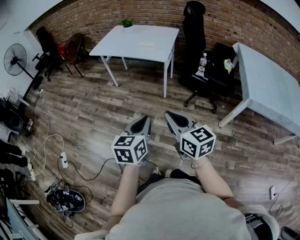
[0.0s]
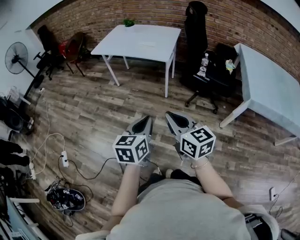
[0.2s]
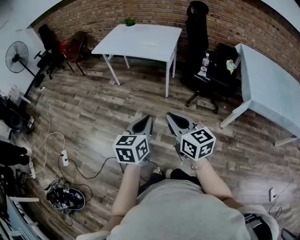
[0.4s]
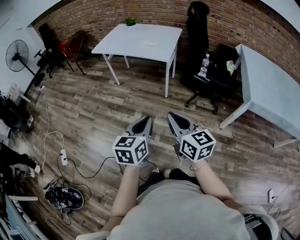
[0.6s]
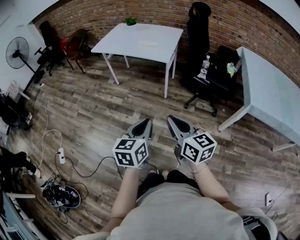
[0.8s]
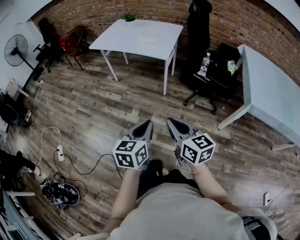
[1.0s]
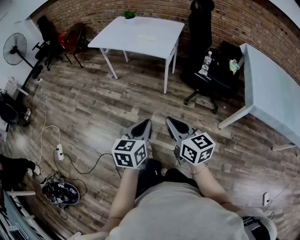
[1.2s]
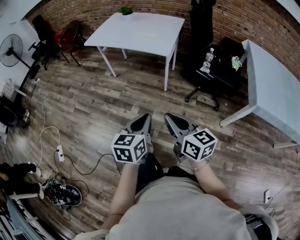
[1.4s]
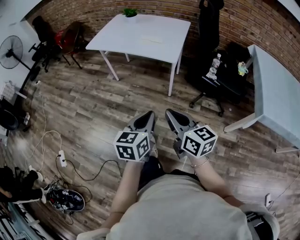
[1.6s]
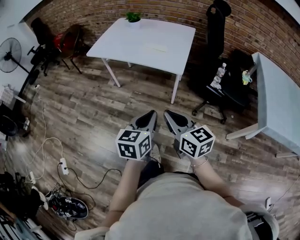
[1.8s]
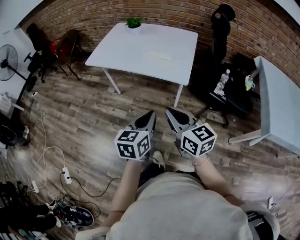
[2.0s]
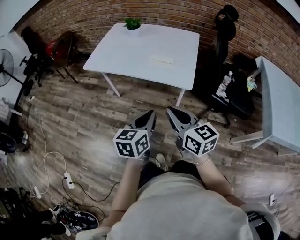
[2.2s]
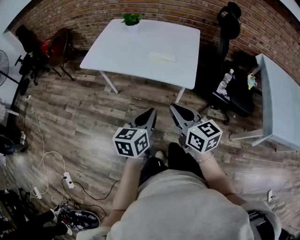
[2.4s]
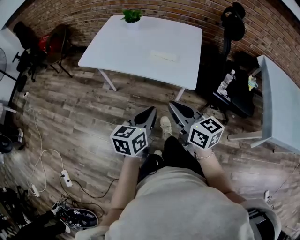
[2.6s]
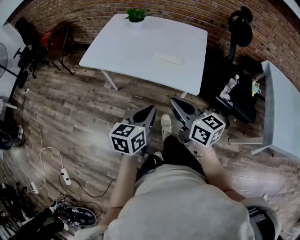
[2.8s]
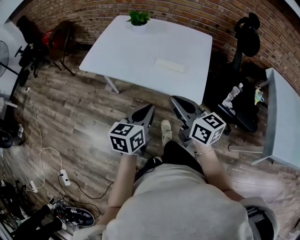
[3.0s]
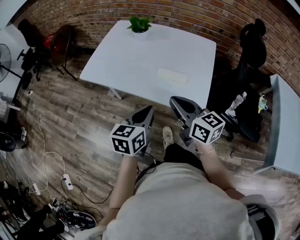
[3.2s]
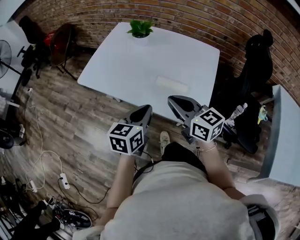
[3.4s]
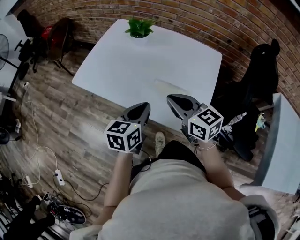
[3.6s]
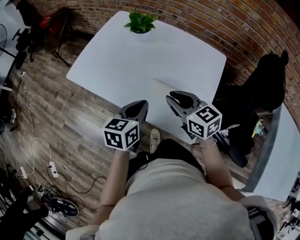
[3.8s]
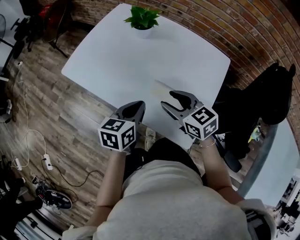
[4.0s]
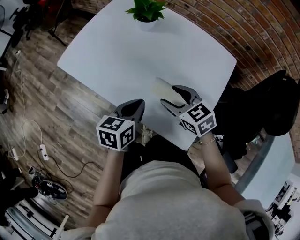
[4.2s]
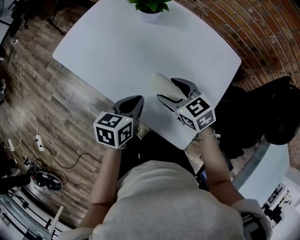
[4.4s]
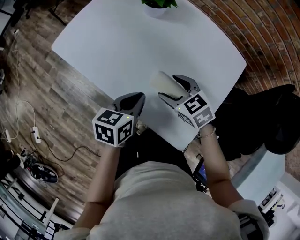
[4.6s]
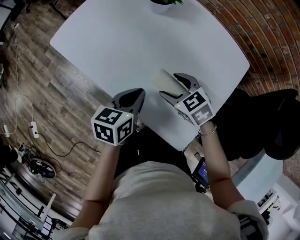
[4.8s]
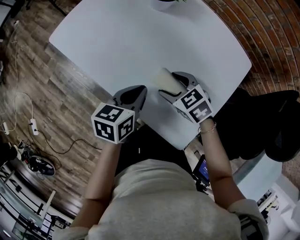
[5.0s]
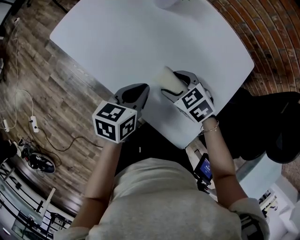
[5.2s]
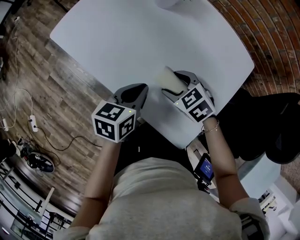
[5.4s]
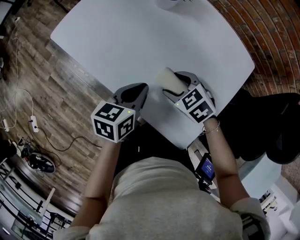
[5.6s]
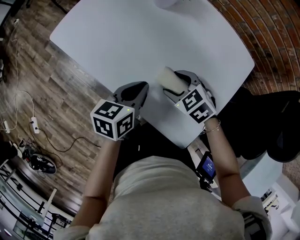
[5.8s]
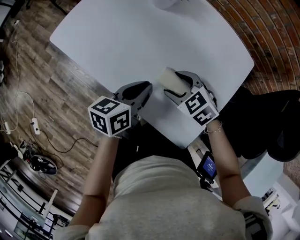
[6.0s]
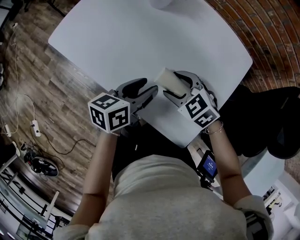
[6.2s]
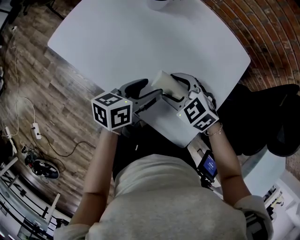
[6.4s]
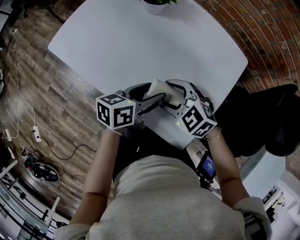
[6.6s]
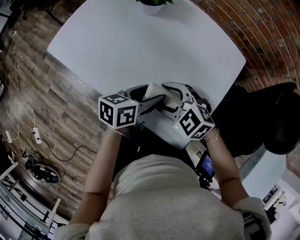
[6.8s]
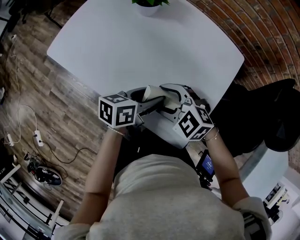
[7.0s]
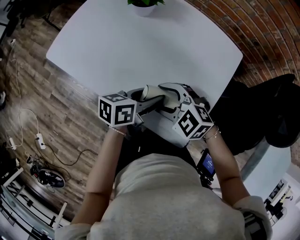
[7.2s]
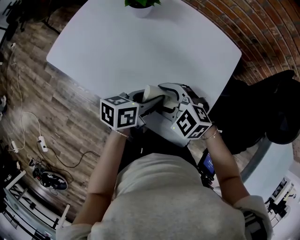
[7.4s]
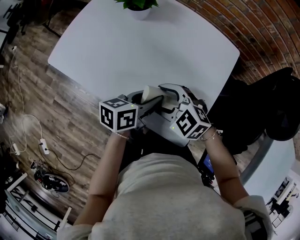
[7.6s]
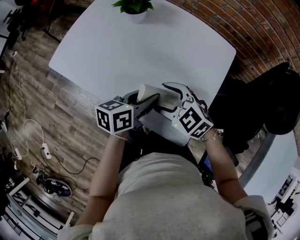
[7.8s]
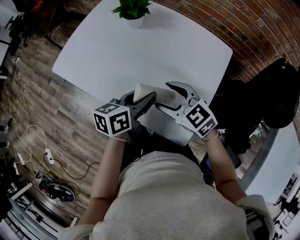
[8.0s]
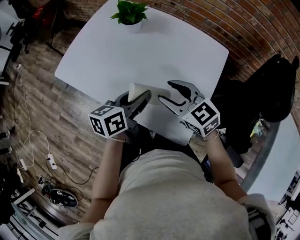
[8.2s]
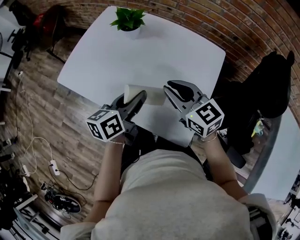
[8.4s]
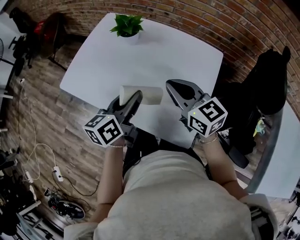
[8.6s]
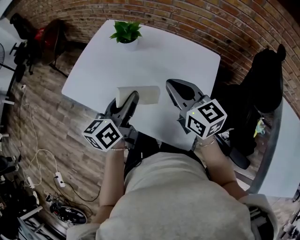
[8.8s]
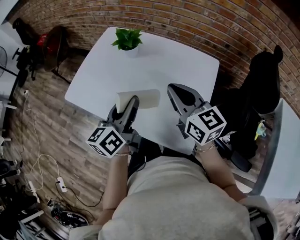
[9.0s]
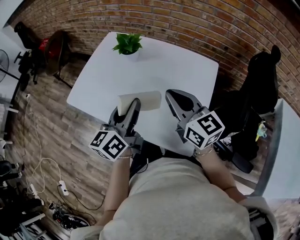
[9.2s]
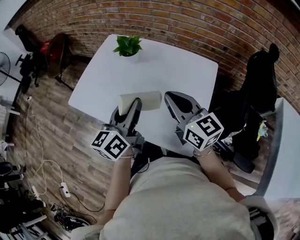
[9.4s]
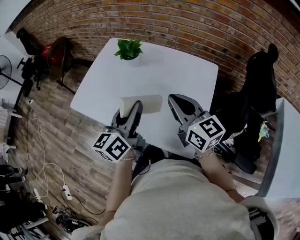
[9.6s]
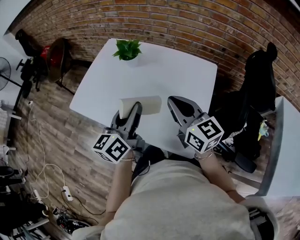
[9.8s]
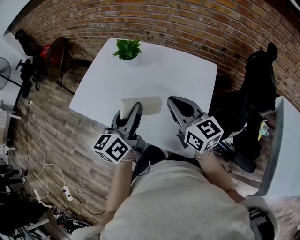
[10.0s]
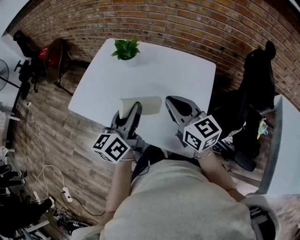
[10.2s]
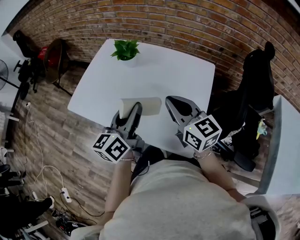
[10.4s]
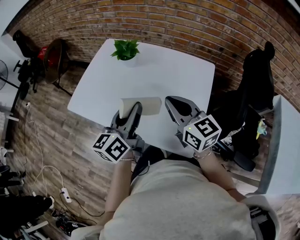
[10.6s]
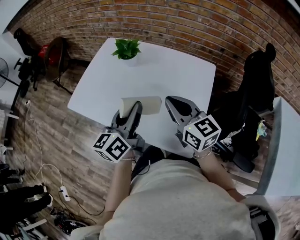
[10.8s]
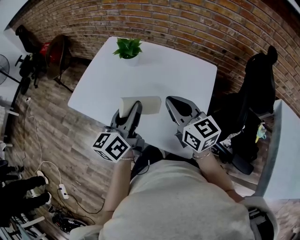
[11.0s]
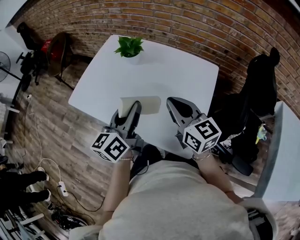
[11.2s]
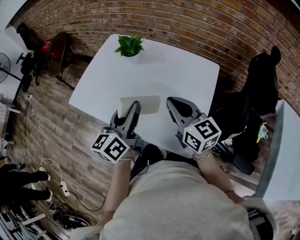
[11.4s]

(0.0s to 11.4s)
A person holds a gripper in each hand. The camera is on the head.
0.0s - 1.4s: The grippers both shift forward and downward by about 10 cm.
1.4s - 2.8s: The two grippers travel together, forward, approximately 40 cm.
2.8s - 4.2s: The two grippers go about 35 cm forward. The right gripper rotates some 50 degrees, and opens.
4.2s - 5.6s: The left gripper changes place by some 5 cm. The right gripper moves downward, some 10 cm, and turns by roughly 30 degrees.
5.6s - 7.2s: The right gripper travels upward by about 5 cm, and changes its angle by some 20 degrees, while the left gripper changes place by approximately 10 cm, swivels roughly 30 degrees, and opens its fingers.
7.2s - 8.6s: Both grippers move upward, about 15 cm. The right gripper tips its fingers upward by approximately 30 degrees, and closes up. Meanwhile the left gripper changes its angle by approximately 30 degrees.
8.6s - 10.0s: The left gripper shifts about 5 cm upward.
10.0s - 11.4s: Neither gripper changes place.

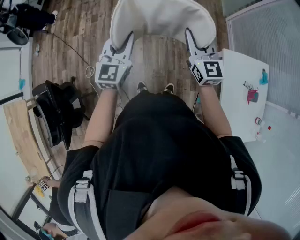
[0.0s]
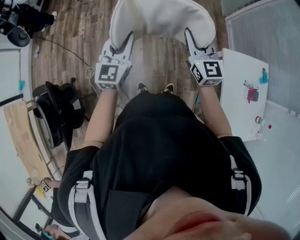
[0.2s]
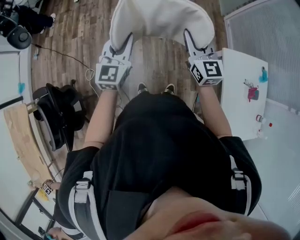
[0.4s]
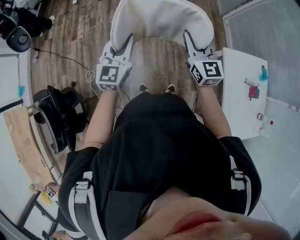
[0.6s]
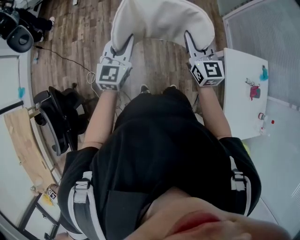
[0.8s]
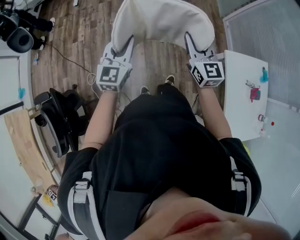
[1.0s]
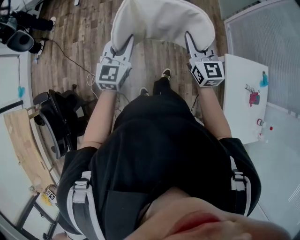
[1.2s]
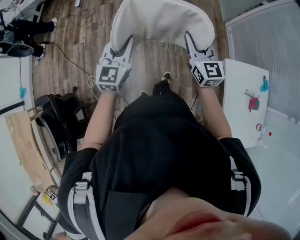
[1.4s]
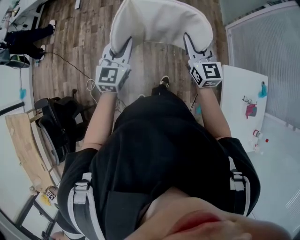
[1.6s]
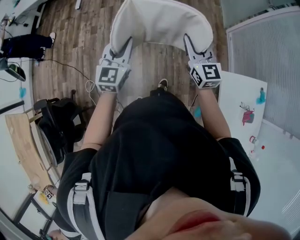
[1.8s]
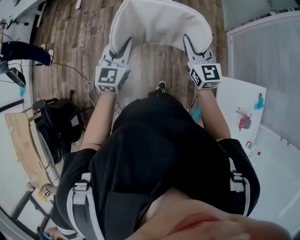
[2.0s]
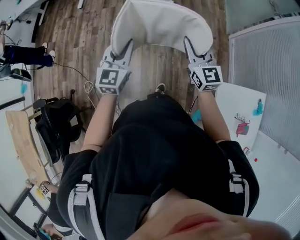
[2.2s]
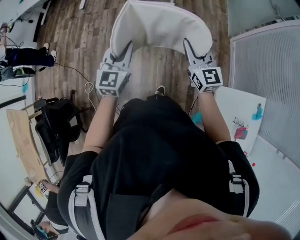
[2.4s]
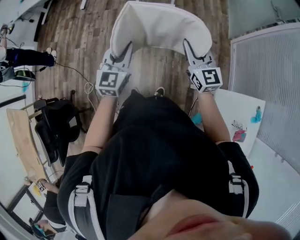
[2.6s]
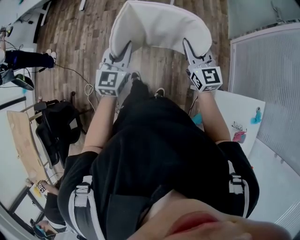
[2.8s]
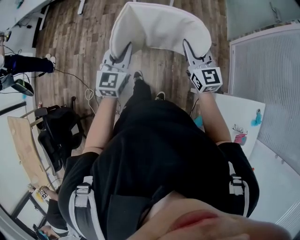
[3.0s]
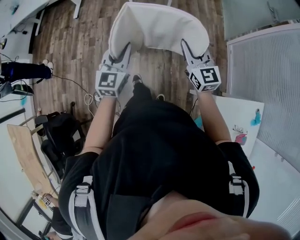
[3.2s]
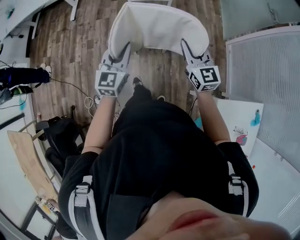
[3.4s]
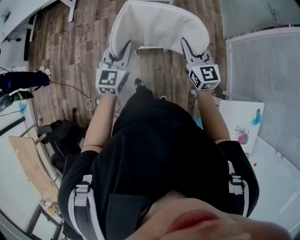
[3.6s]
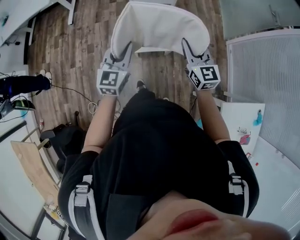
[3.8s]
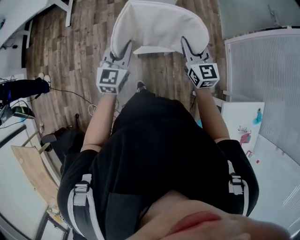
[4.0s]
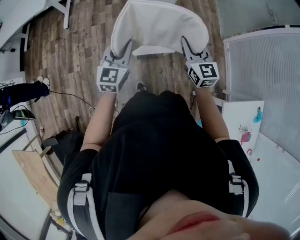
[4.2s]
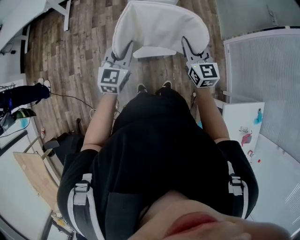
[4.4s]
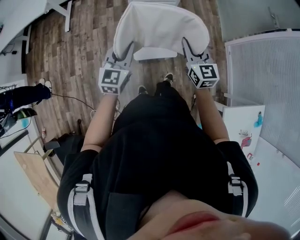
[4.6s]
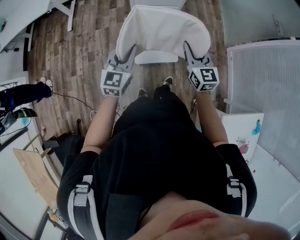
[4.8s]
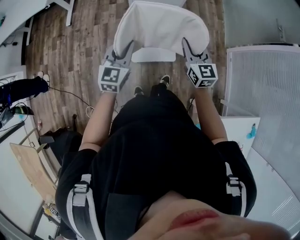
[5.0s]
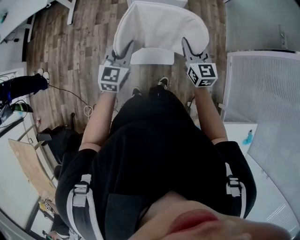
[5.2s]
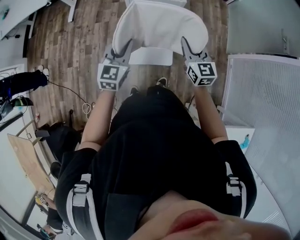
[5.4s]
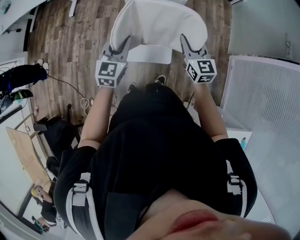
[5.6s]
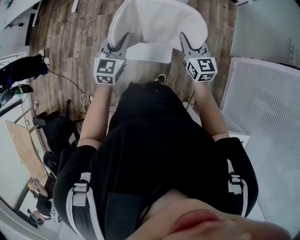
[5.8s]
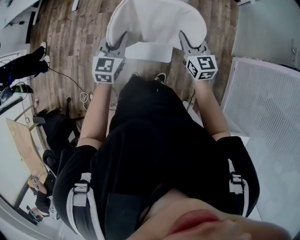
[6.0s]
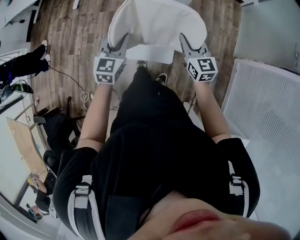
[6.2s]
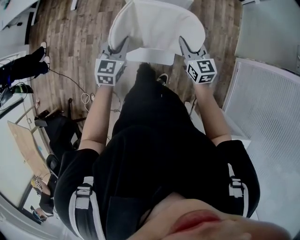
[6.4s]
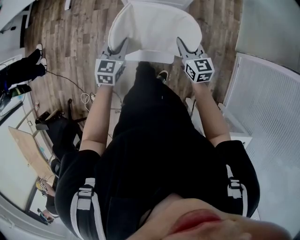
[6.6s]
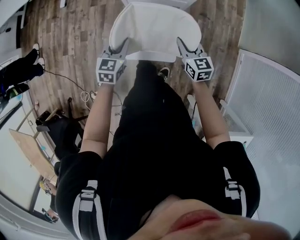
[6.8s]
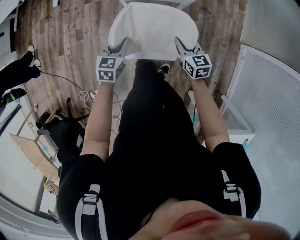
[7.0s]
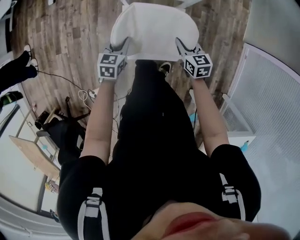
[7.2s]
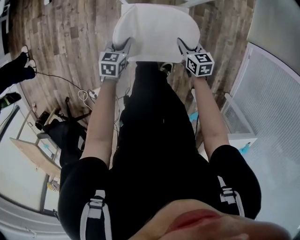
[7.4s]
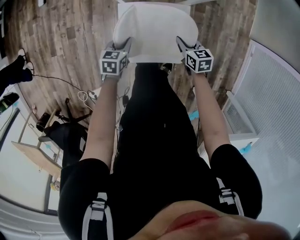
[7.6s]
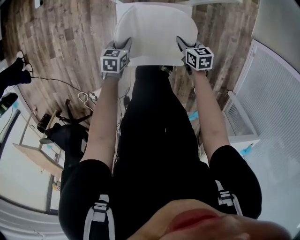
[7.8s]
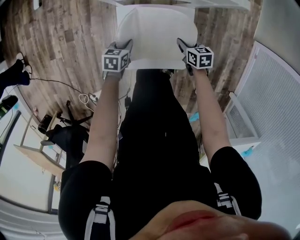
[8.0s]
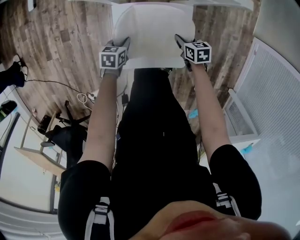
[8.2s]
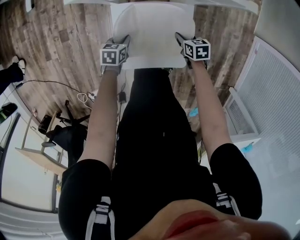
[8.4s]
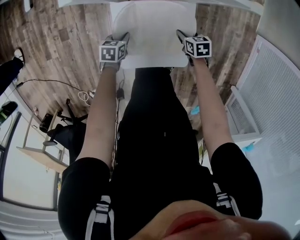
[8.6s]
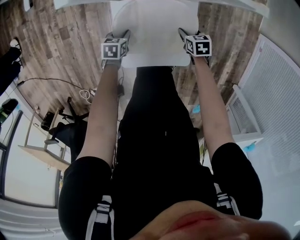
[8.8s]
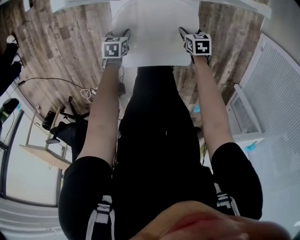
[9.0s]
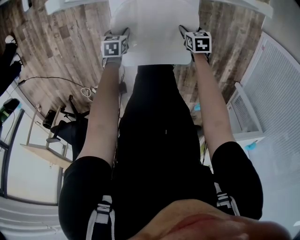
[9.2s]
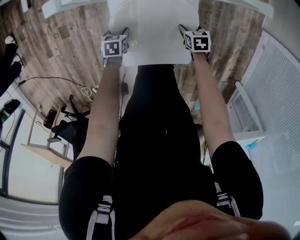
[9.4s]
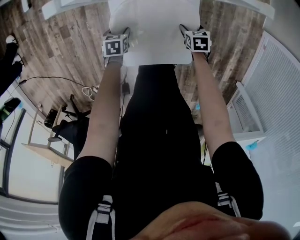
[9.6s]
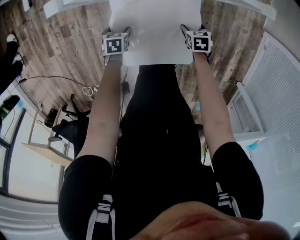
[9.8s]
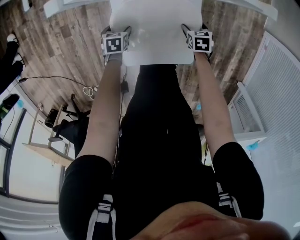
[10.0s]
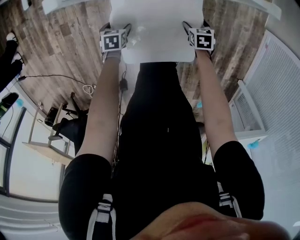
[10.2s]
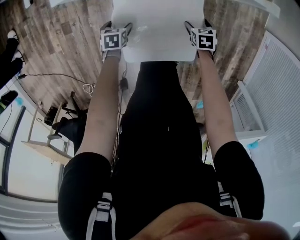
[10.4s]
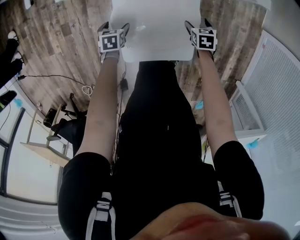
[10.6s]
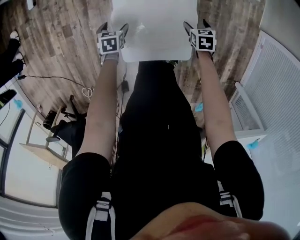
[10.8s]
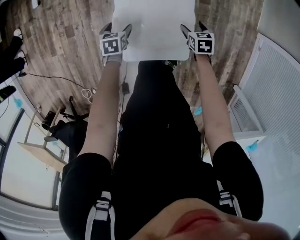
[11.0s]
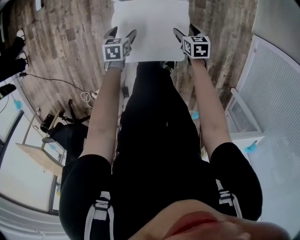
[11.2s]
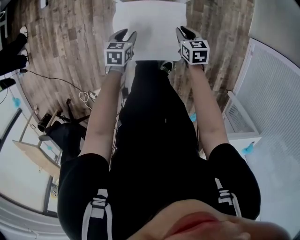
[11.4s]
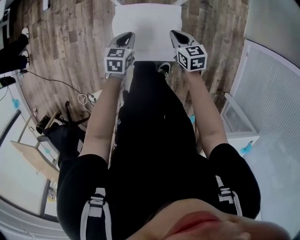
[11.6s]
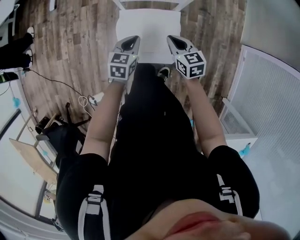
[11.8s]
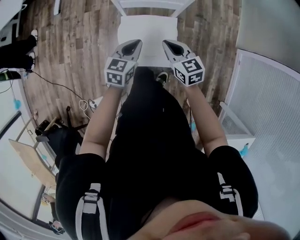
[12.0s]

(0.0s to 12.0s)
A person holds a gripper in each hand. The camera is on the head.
0.0s - 1.6s: The two grippers go some 10 cm forward.
1.6s - 3.0s: The two grippers go approximately 20 cm forward and to the right.
3.0s - 4.4s: Both grippers travel together forward and to the left, approximately 25 cm.
4.4s - 6.0s: The left gripper travels forward and to the right by about 20 cm; the right gripper shifts some 25 cm forward, to the right and downward.
6.0s - 7.6s: Both grippers move downward, about 50 cm. The right gripper tilts its fingers about 30 degrees downward. The left gripper rotates about 40 degrees.
7.6s - 9.0s: Both grippers travel together downward, approximately 15 cm. The right gripper opens.
9.0s - 10.4s: The right gripper opens up. Meanwhile the left gripper opens up.
10.4s - 12.0s: Both grippers move upward, approximately 40 cm. The right gripper tilts its fingers some 40 degrees upward, and closes up. The left gripper angles its fingers upward, by roughly 40 degrees, and closes.
